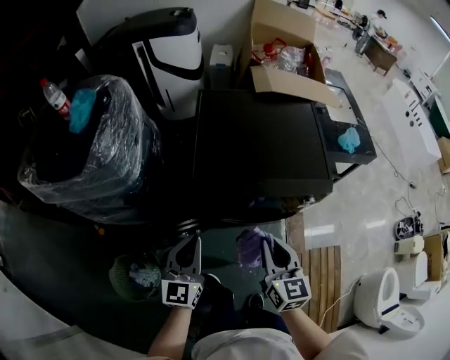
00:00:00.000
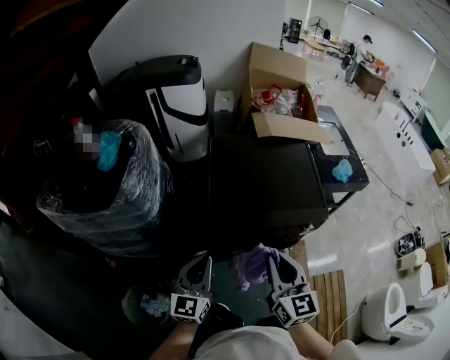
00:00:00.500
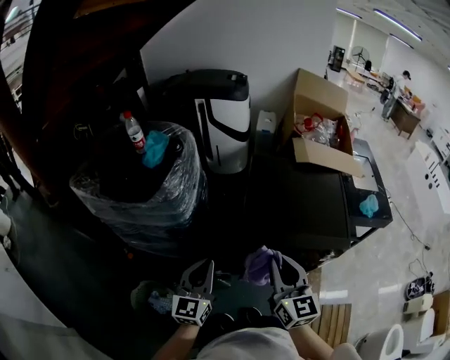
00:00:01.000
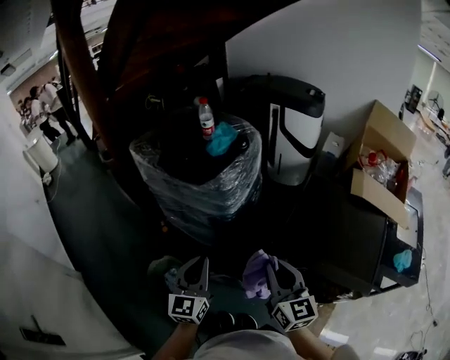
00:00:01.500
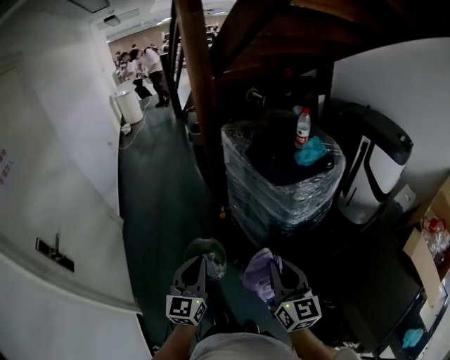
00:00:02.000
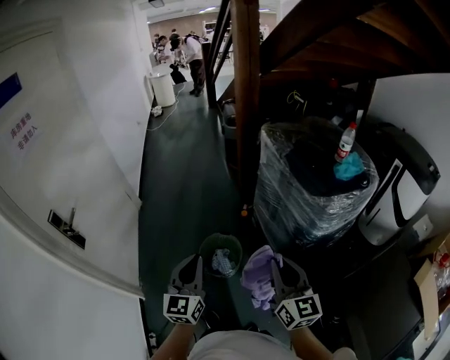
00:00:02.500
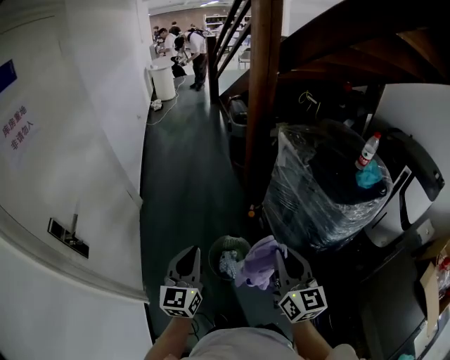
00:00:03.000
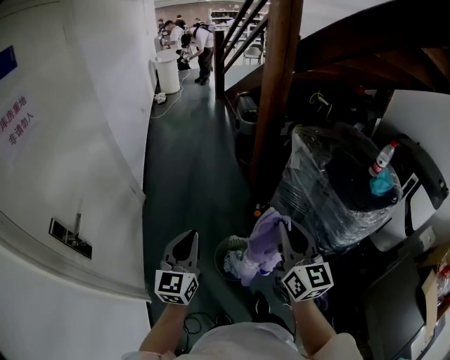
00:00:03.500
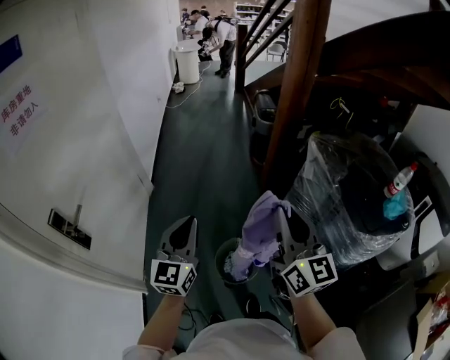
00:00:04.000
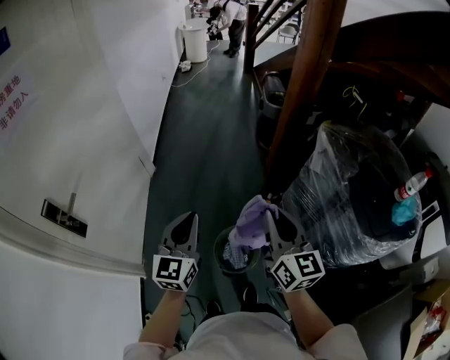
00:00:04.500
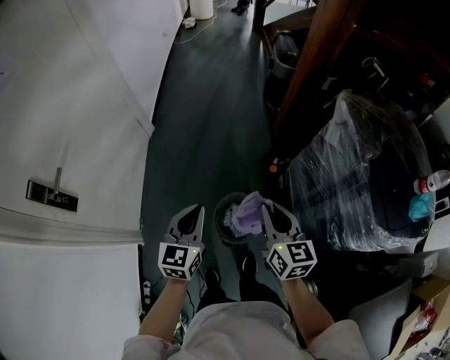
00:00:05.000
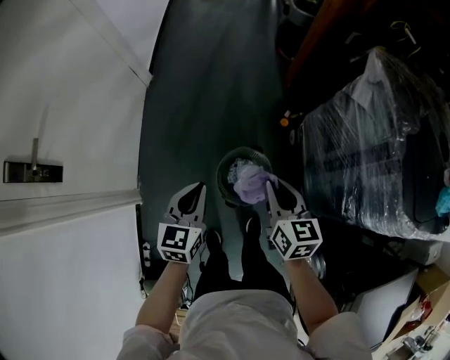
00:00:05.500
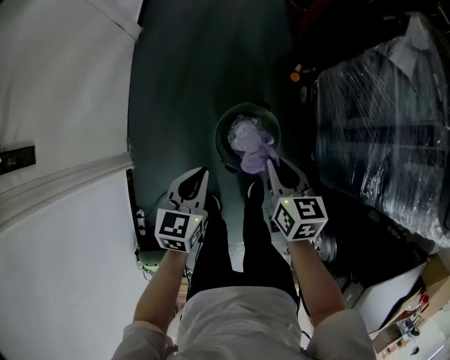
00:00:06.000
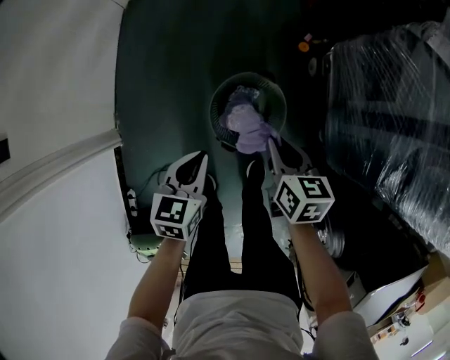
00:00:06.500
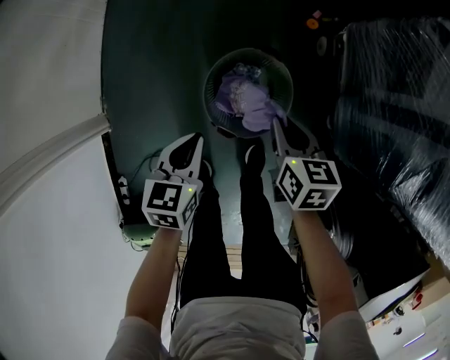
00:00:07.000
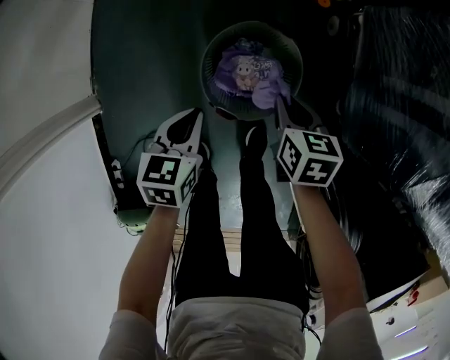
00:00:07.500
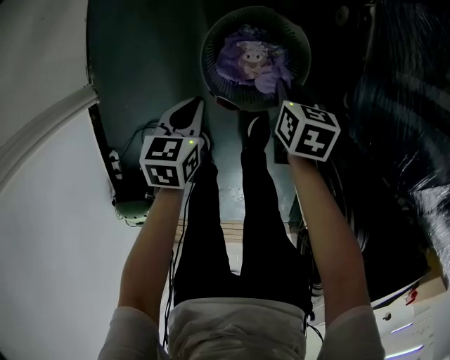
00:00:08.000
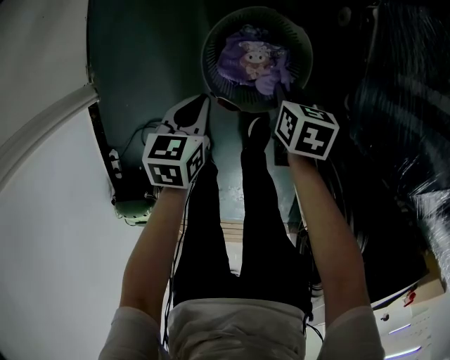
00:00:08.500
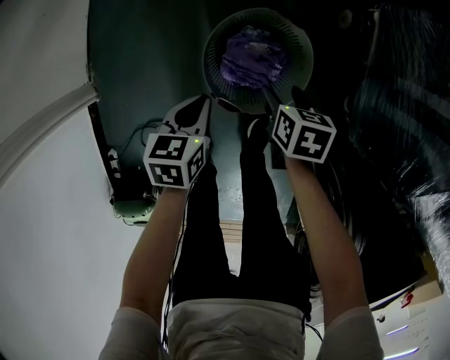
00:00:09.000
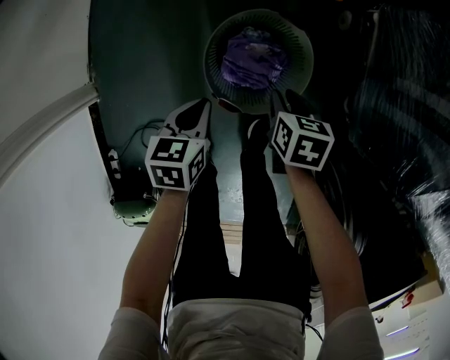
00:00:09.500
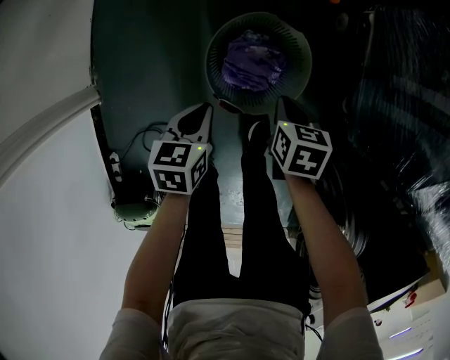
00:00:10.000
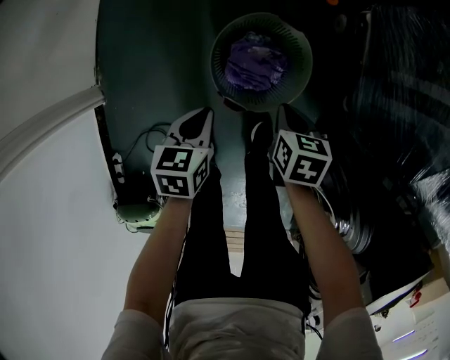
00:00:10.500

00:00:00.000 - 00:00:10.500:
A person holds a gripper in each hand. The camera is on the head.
00:00:00.000 - 00:00:02.000: The left gripper moves about 35 cm, and swivels roughly 70 degrees; the right gripper changes place by about 35 cm, and swivels approximately 70 degrees.
00:00:02.000 - 00:00:04.000: The right gripper shifts approximately 40 cm forward and to the left, and turns by roughly 20 degrees. The left gripper moves to the left and forward, some 35 cm.
00:00:04.000 - 00:00:06.500: Both grippers move downward, roughly 50 cm. The right gripper angles its fingers downward, by roughly 50 degrees; the left gripper angles its fingers downward, by roughly 40 degrees.
00:00:06.500 - 00:00:08.500: Both grippers travel together downward, roughly 20 cm. The right gripper turns by roughly 20 degrees.
00:00:08.500 - 00:00:10.500: The right gripper shifts some 5 cm backward, and opens and closes again, while the left gripper moves approximately 5 cm.

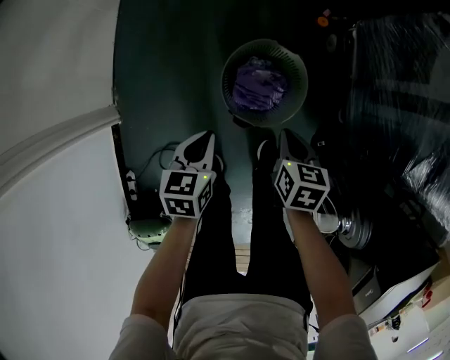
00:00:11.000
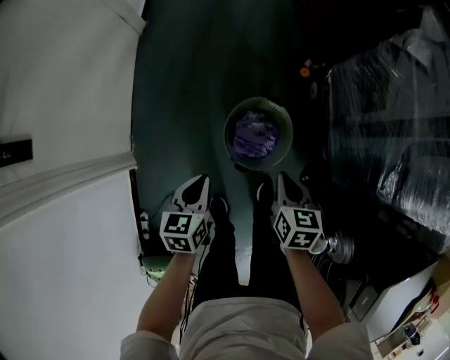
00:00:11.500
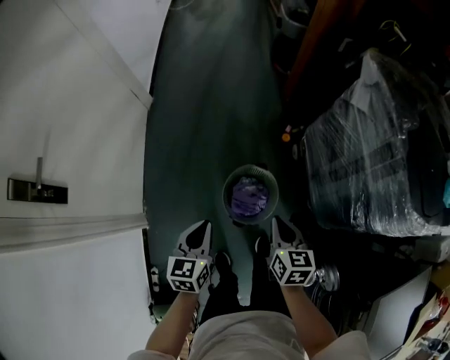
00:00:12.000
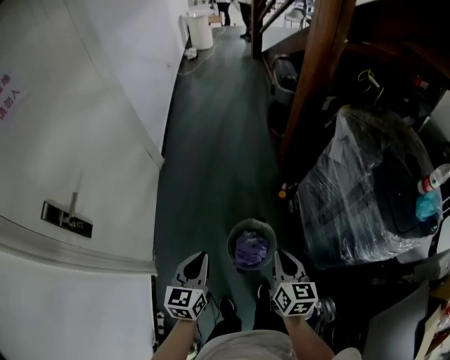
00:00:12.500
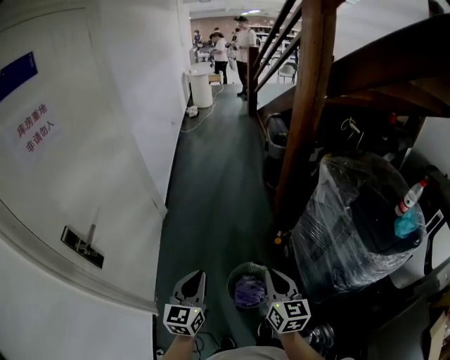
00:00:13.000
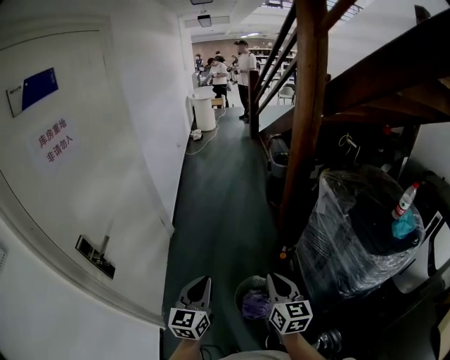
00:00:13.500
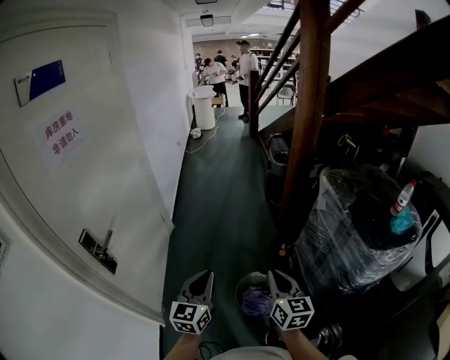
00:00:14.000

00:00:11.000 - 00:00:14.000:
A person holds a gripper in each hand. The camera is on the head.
00:00:11.000 - 00:00:12.500: Both grippers travel together upward, some 40 cm. The left gripper changes its angle by about 30 degrees, while the right gripper points its fingers roughly 30 degrees further upward.
00:00:12.500 - 00:00:14.000: The right gripper heads upward, to the left and backward, covering roughly 15 cm. The left gripper shifts approximately 15 cm upward.

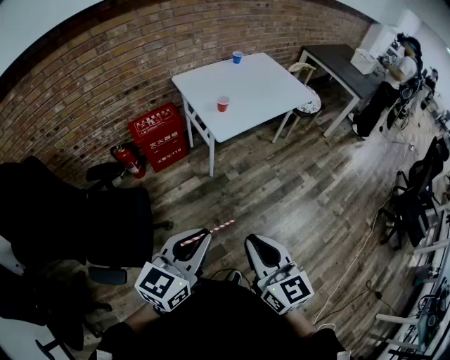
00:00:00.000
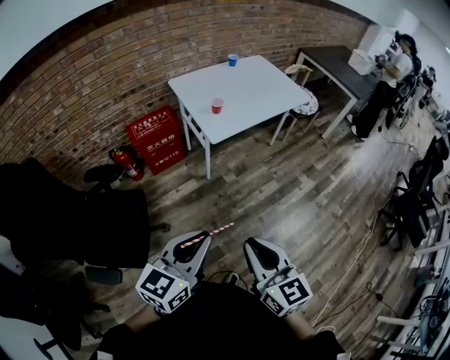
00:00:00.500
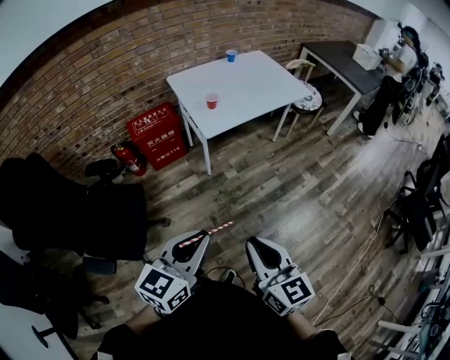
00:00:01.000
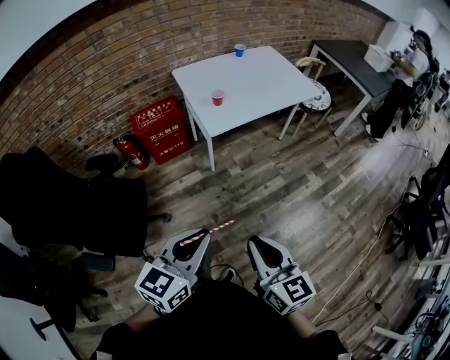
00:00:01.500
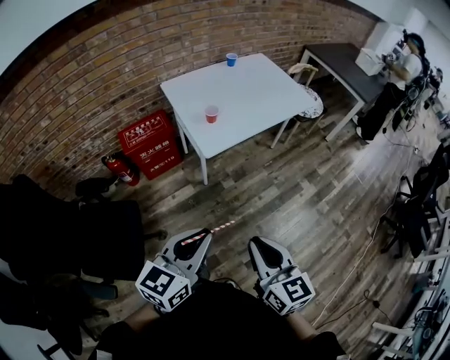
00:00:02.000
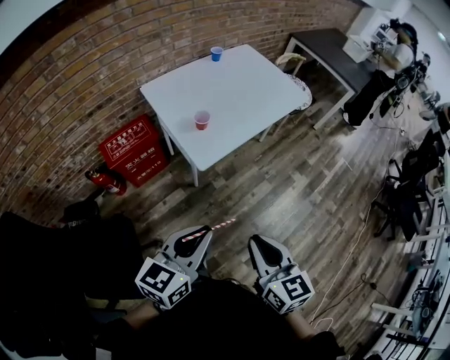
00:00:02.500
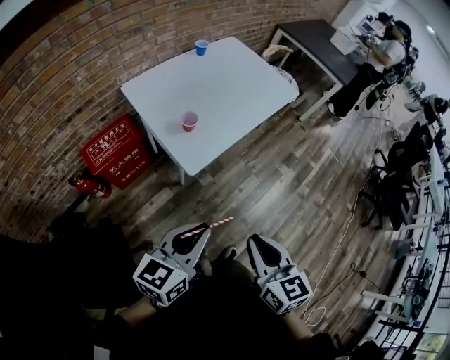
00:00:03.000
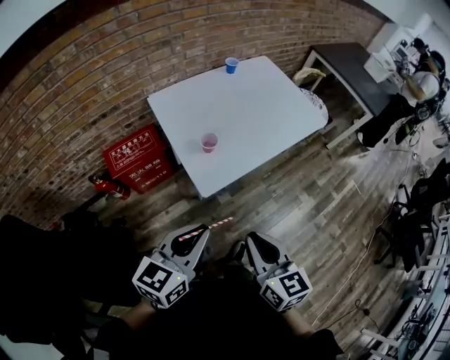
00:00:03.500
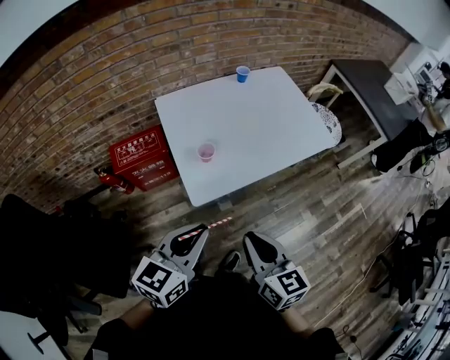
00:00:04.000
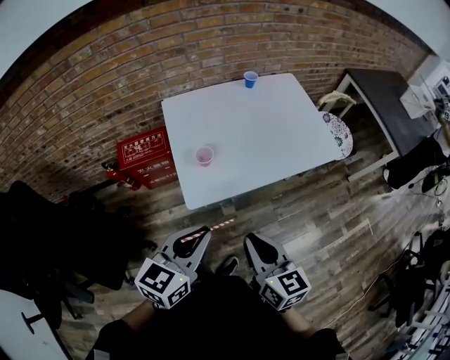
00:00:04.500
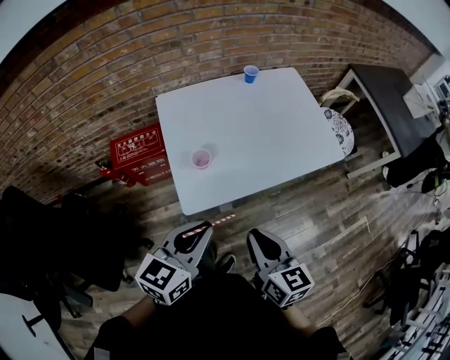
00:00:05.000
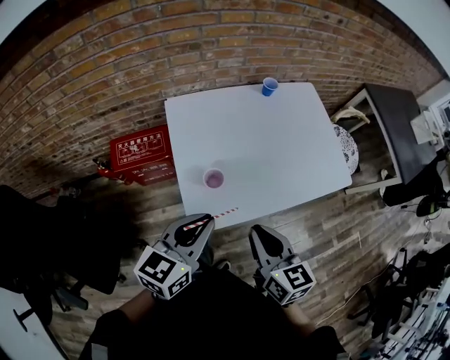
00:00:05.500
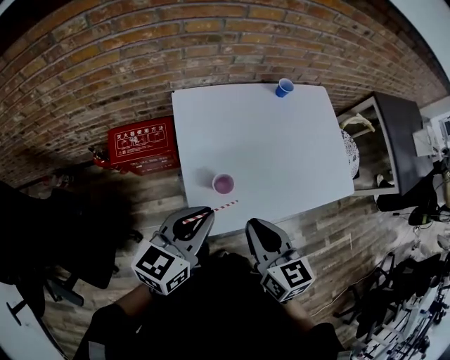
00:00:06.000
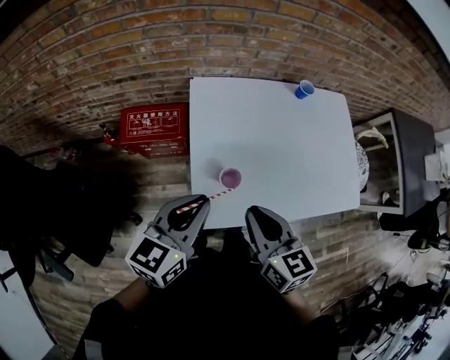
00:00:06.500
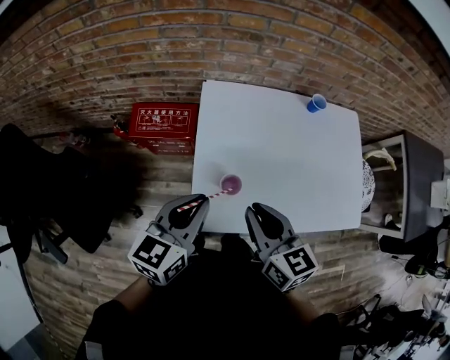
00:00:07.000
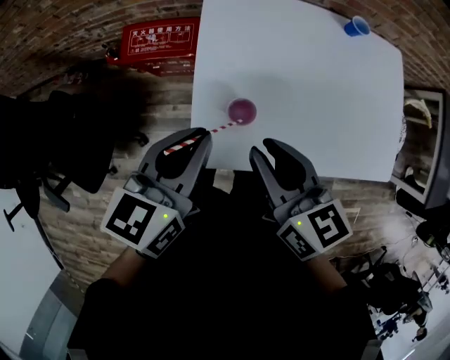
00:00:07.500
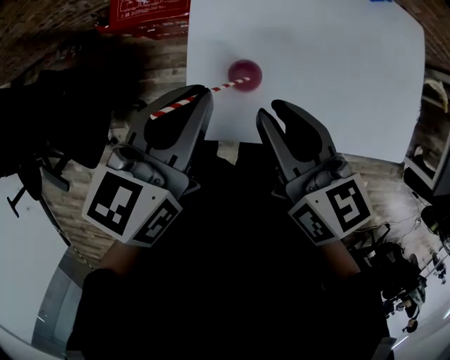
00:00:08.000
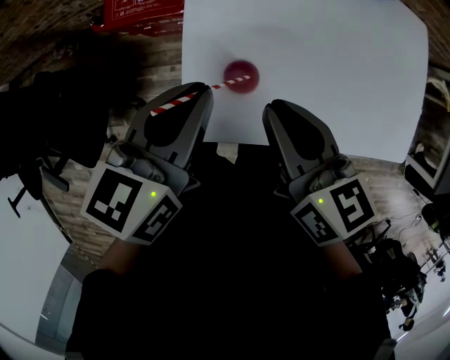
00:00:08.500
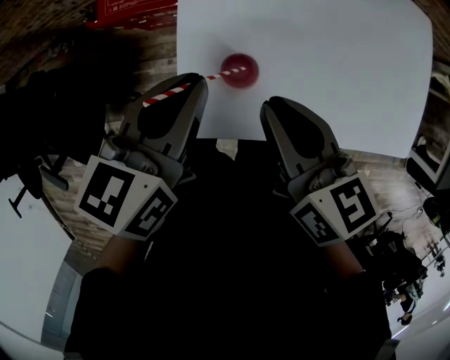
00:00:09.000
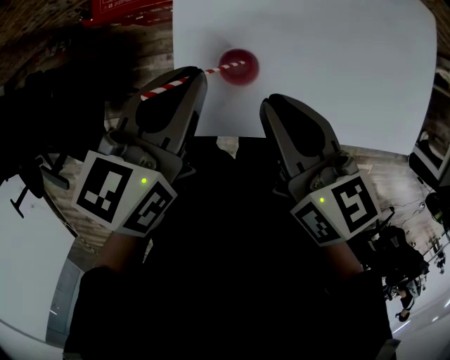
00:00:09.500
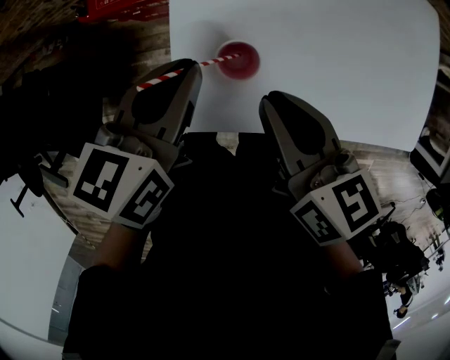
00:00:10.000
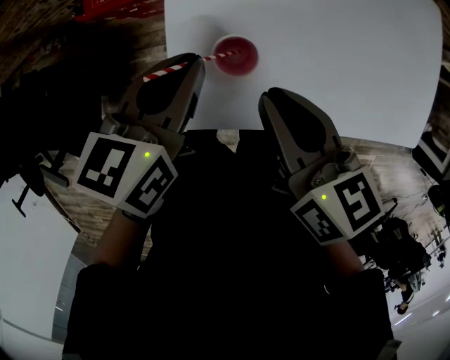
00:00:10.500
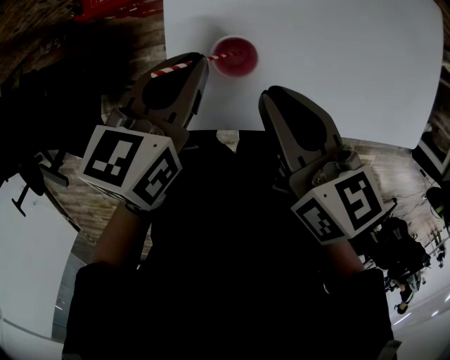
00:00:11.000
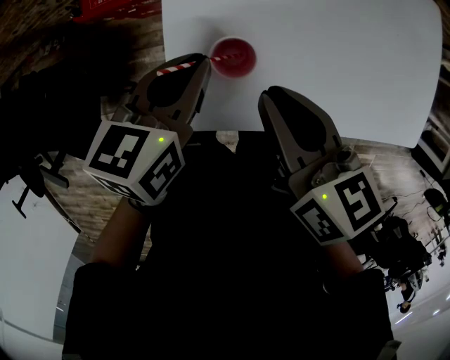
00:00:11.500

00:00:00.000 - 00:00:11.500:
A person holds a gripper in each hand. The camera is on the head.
00:00:00.000 - 00:00:02.000: Both grippers travel together forward and to the right, about 15 cm.
00:00:02.000 - 00:00:04.000: The two grippers go about 30 cm forward.
00:00:04.000 - 00:00:06.000: The grippers both shift forward by about 25 cm.
00:00:06.000 - 00:00:07.500: The left gripper heads downward, covering roughly 10 cm, and turns by some 20 degrees. The right gripper moves forward and downward, approximately 10 cm, and turns by about 20 degrees.
00:00:07.500 - 00:00:09.500: Both grippers travel together downward, approximately 10 cm.
00:00:09.500 - 00:00:11.500: The left gripper is displaced downward by about 5 cm.

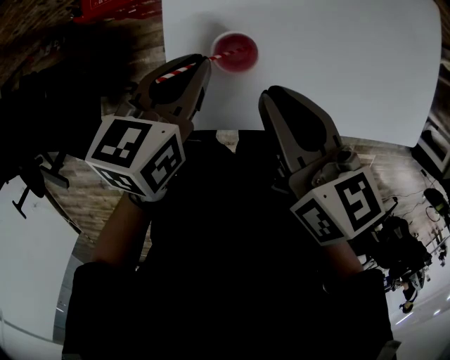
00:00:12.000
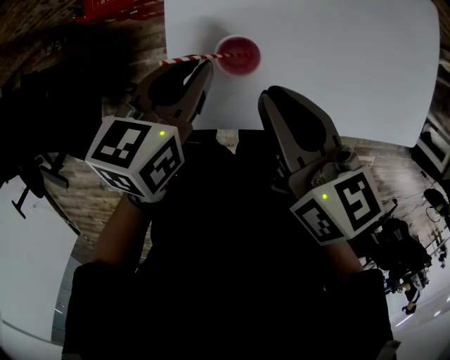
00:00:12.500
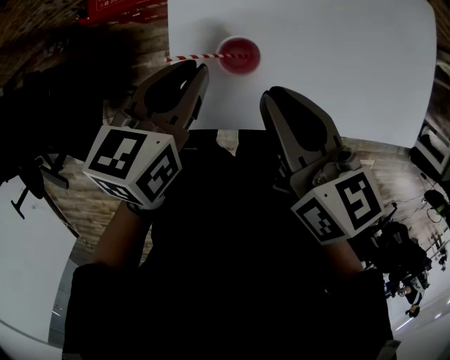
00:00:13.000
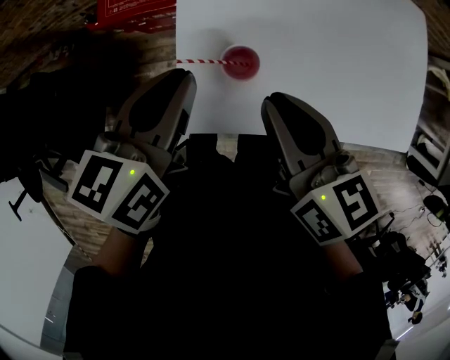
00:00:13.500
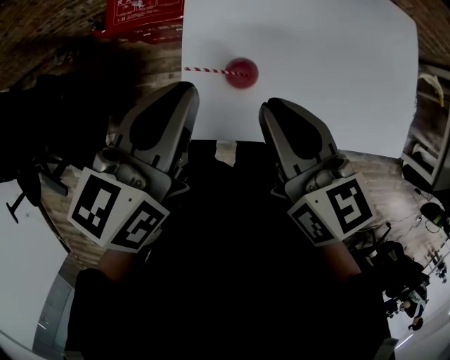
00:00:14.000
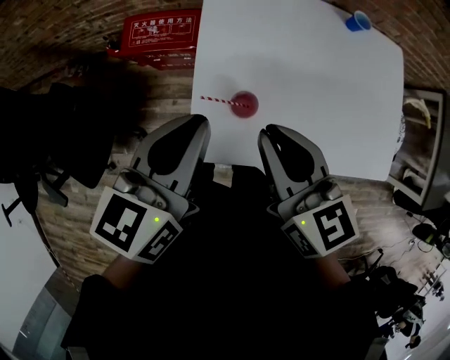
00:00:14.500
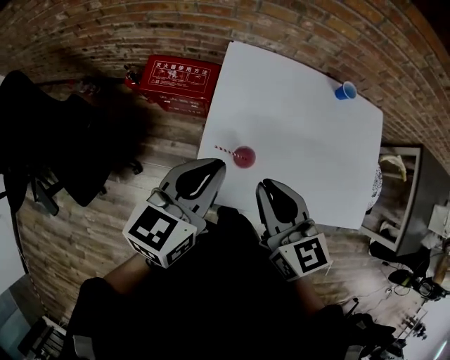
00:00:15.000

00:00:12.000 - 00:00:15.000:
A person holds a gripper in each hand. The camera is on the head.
00:00:12.000 - 00:00:13.500: The left gripper shifts roughly 10 cm upward.
00:00:13.500 - 00:00:15.000: Both grippers travel together upward, roughly 10 cm. The right gripper swivels approximately 20 degrees.
